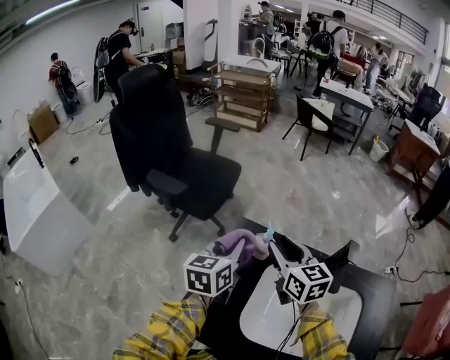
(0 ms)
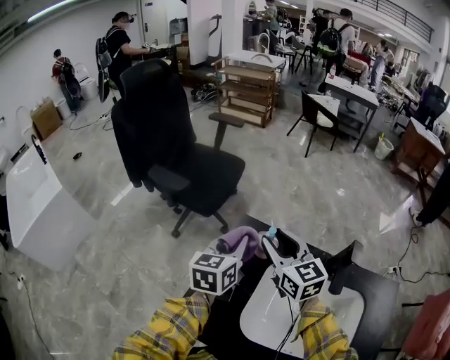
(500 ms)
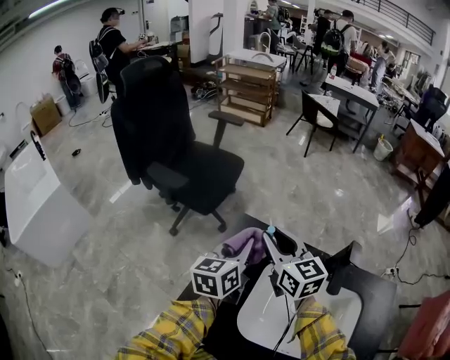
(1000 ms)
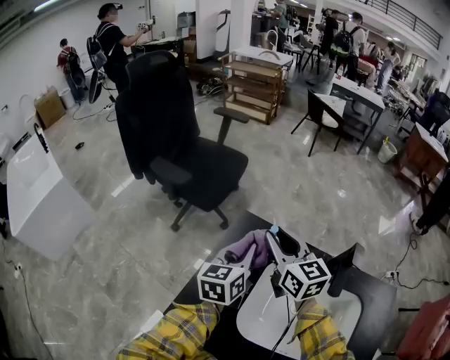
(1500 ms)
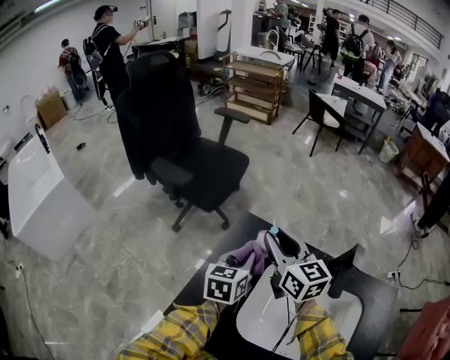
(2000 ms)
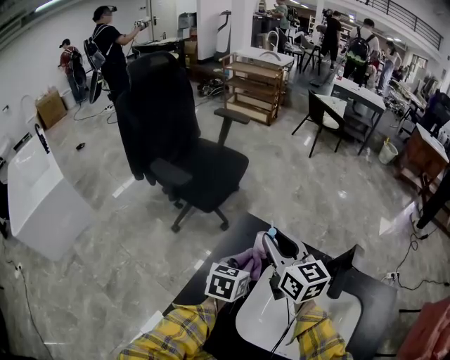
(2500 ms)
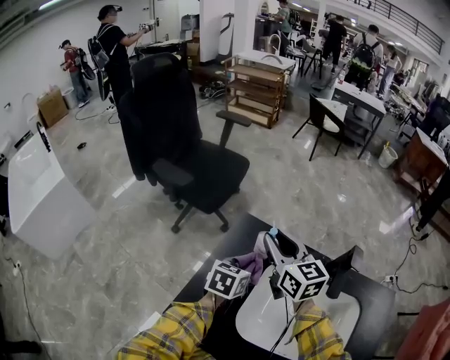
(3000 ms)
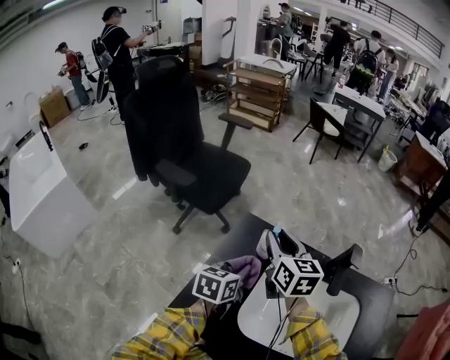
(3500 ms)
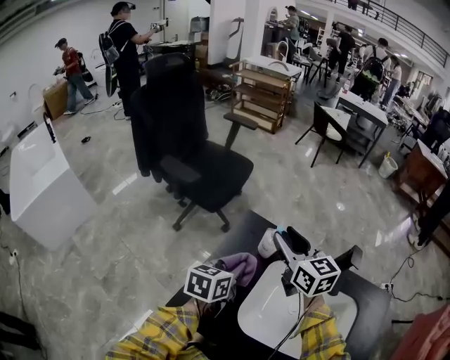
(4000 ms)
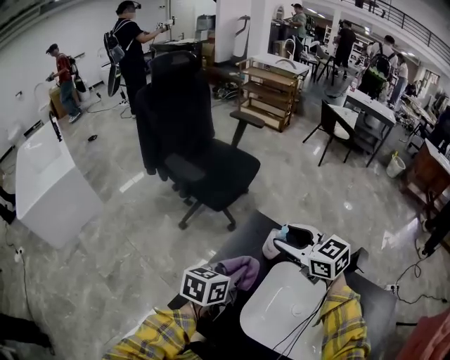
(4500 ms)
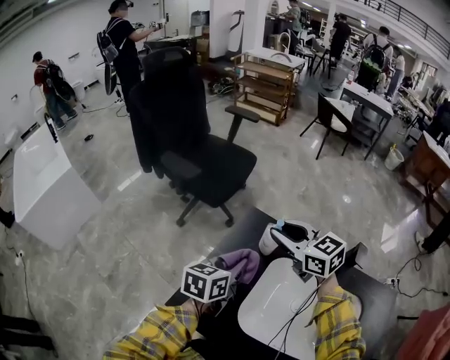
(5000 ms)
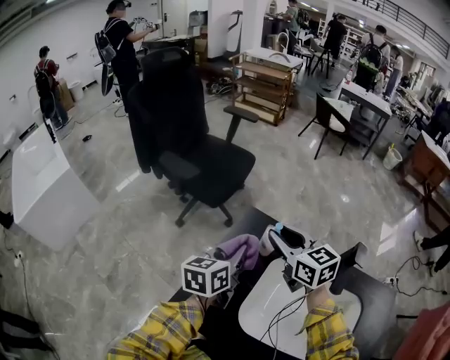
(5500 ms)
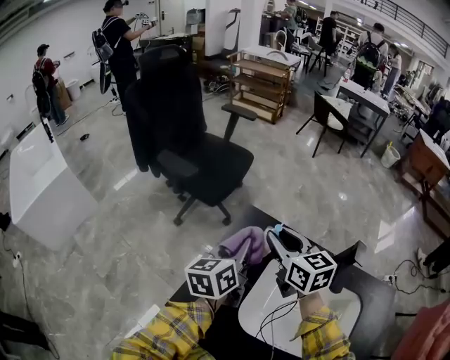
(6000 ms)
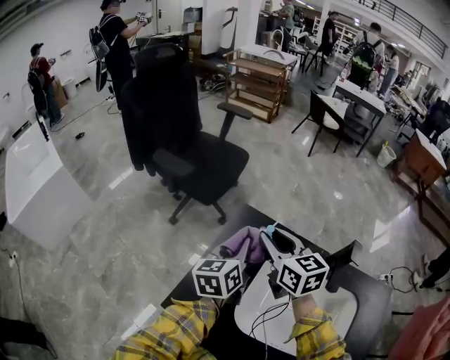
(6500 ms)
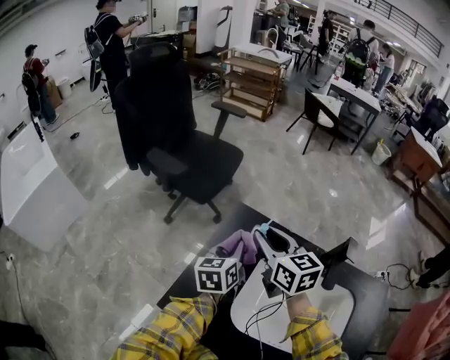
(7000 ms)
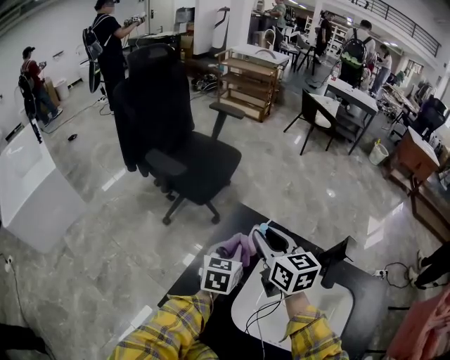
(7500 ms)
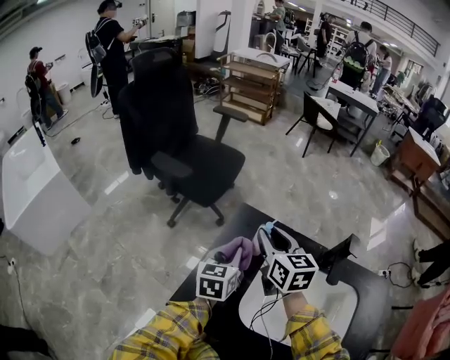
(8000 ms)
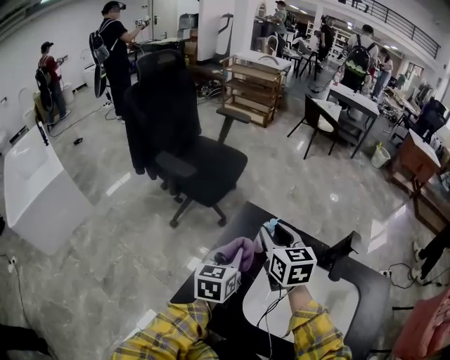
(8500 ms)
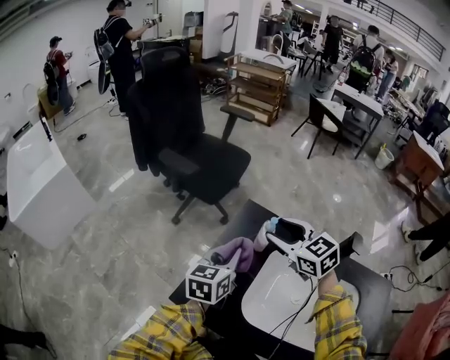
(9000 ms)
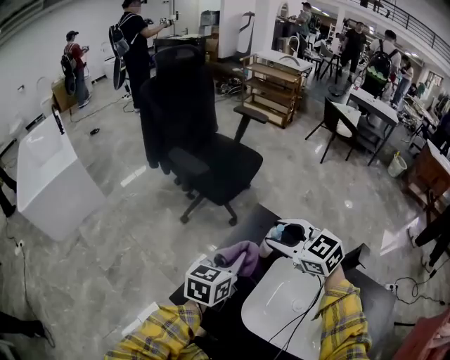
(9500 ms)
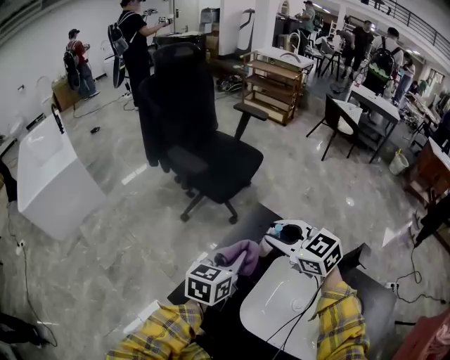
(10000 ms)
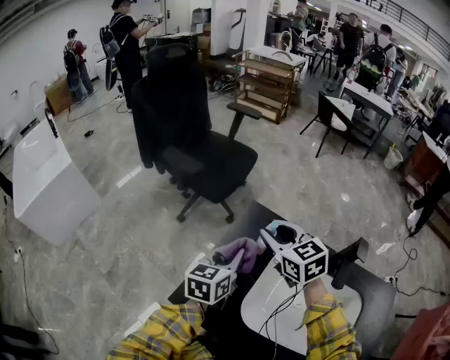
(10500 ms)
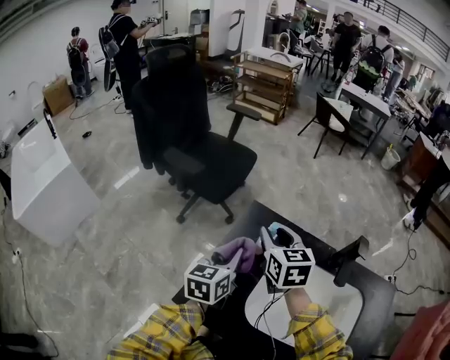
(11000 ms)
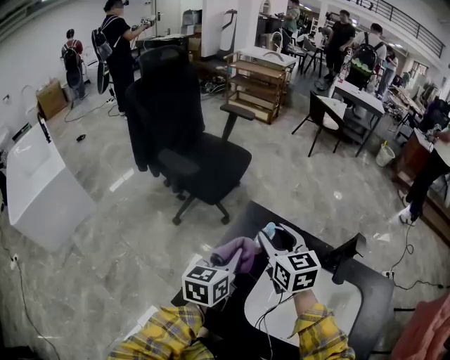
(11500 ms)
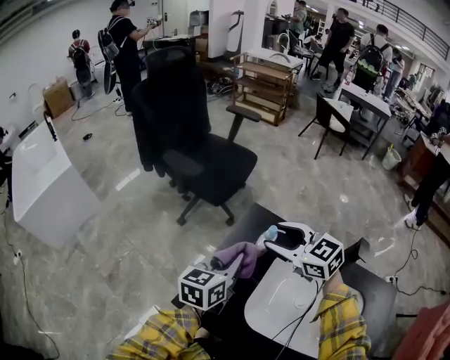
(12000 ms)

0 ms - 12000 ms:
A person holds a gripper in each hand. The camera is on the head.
0 ms - 2000 ms: The left gripper shifts about 5 cm downward.
2000 ms - 4000 ms: The left gripper moves backward, about 5 cm.
4000 ms - 6000 ms: The left gripper moves upward and forward, about 10 cm, and turns by some 20 degrees.
6000 ms - 8000 ms: The left gripper travels downward by approximately 5 cm, and turns by roughly 20 degrees.
8000 ms - 10000 ms: The right gripper turns by about 50 degrees.

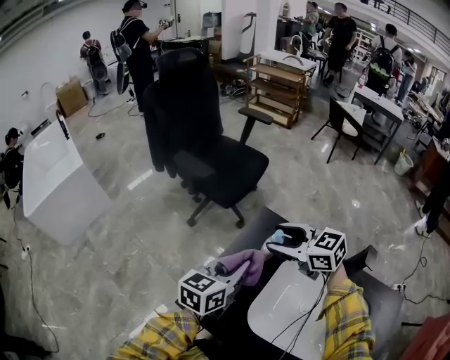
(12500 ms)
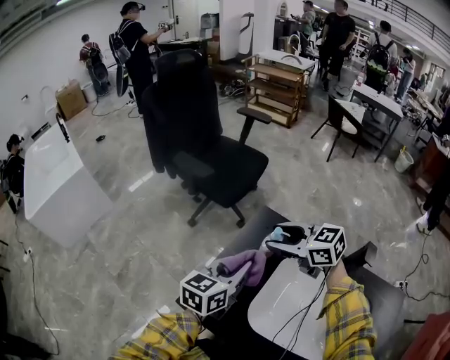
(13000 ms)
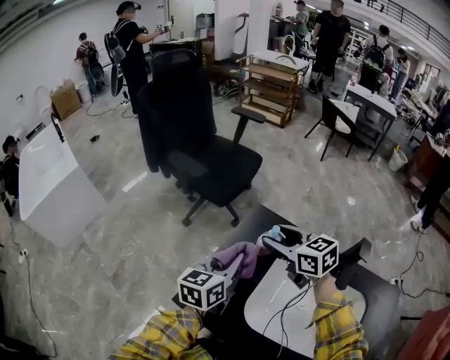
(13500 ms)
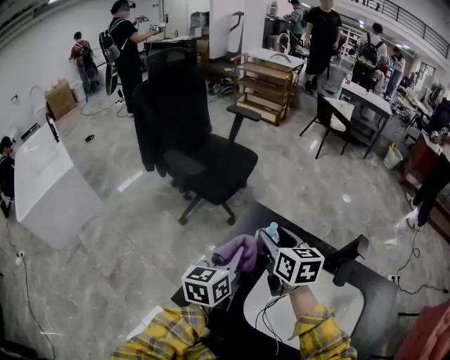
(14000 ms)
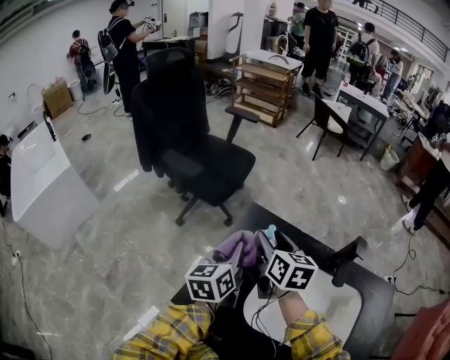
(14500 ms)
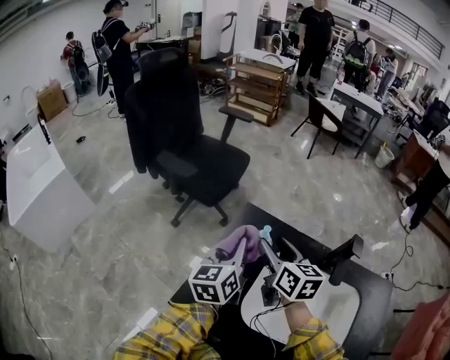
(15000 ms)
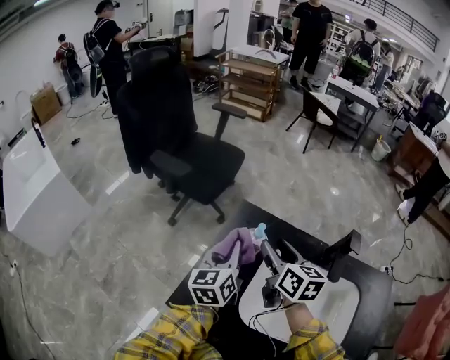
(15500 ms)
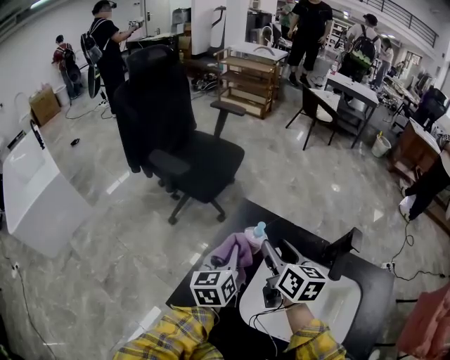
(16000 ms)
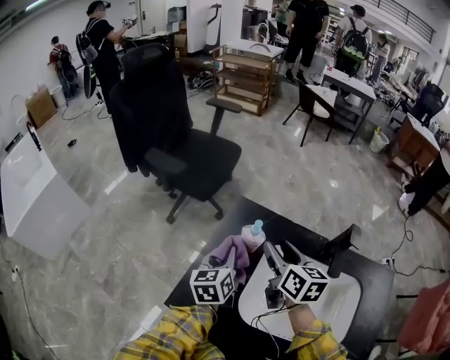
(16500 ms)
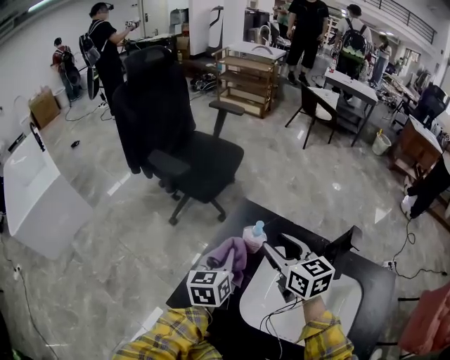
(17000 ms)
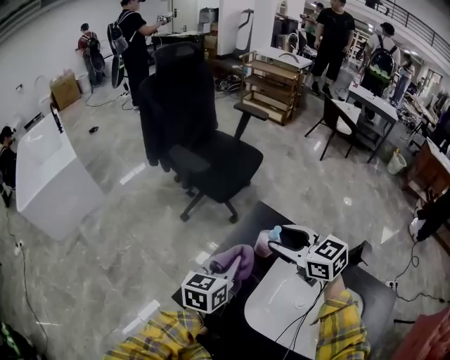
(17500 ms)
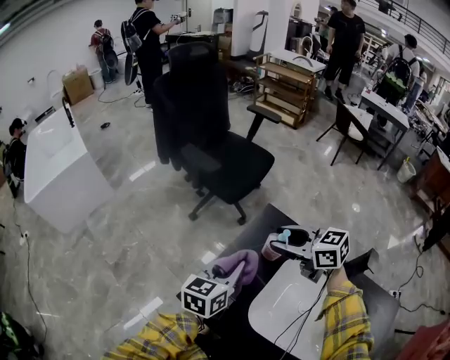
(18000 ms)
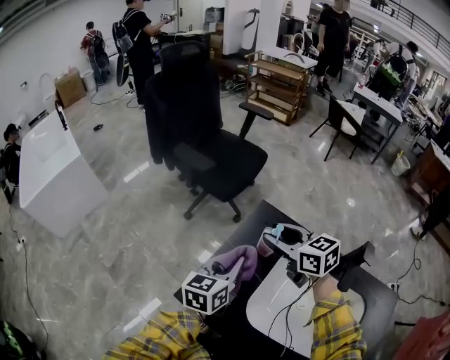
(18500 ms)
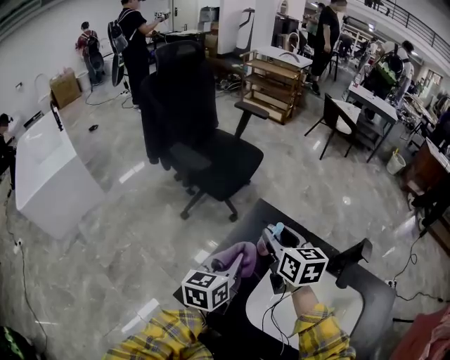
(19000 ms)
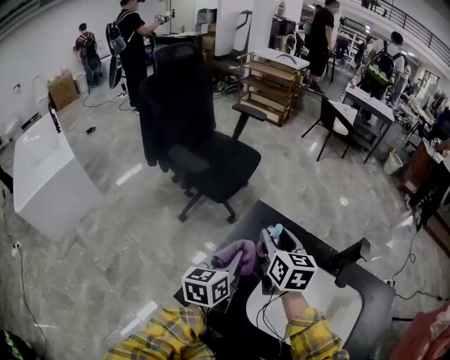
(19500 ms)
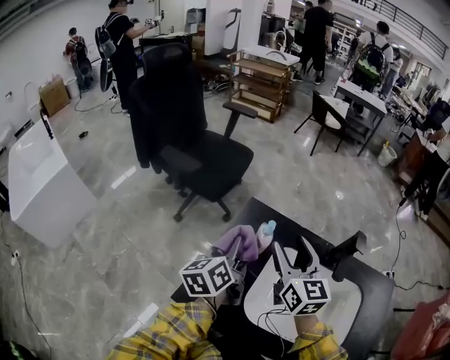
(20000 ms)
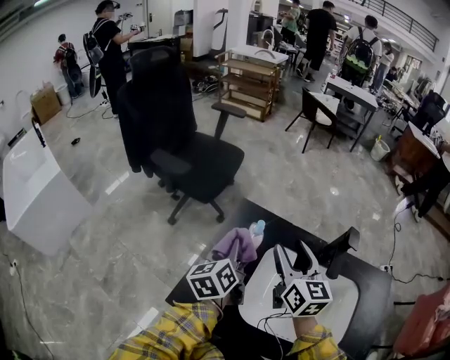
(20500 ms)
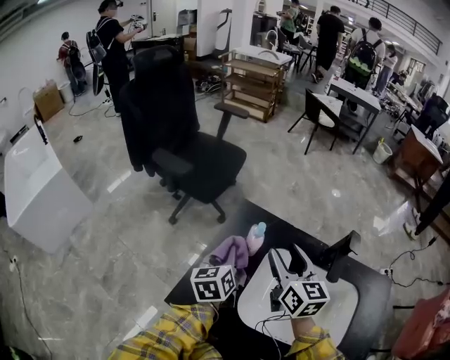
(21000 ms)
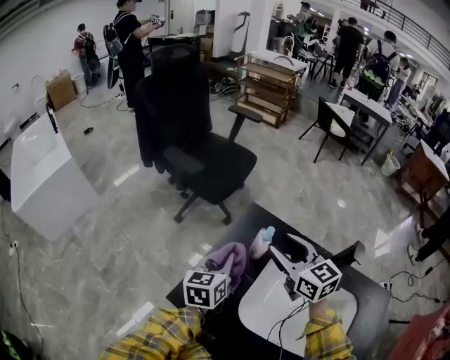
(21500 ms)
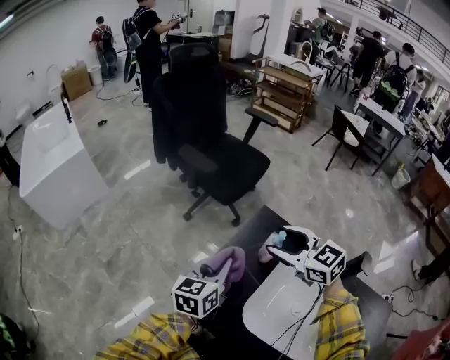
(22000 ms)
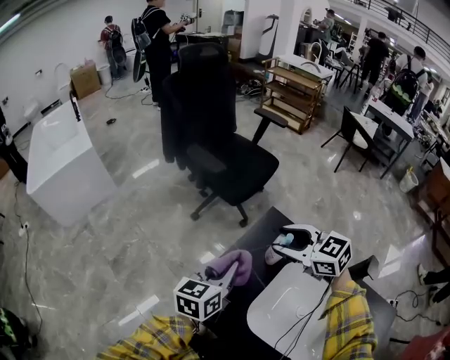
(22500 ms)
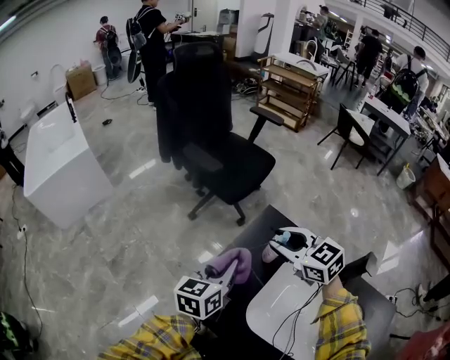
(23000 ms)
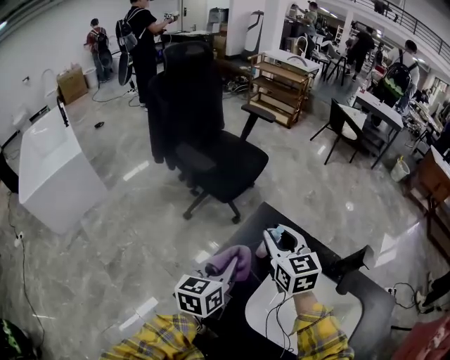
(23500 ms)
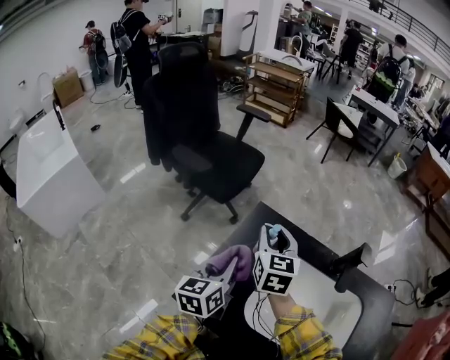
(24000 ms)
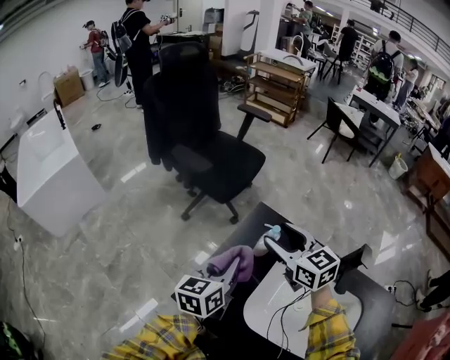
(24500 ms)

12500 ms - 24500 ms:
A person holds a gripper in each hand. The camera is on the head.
12500 ms - 14500 ms: The right gripper rotates approximately 60 degrees.
14500 ms - 16500 ms: The right gripper moves to the right, some 5 cm. Meanwhile the left gripper moves downward, some 5 cm.
16500 ms - 18500 ms: The left gripper ends up roughly 5 cm from where it was. Meanwhile the right gripper shifts approximately 10 cm to the left, and rotates some 40 degrees.
18500 ms - 20500 ms: The right gripper moves to the right and backward, about 10 cm, and changes its angle by approximately 50 degrees.
20500 ms - 22500 ms: The left gripper shifts by approximately 10 cm; the right gripper shifts by approximately 15 cm, and turns by some 70 degrees.
22500 ms - 24500 ms: The right gripper swivels roughly 30 degrees, and closes and opens again.

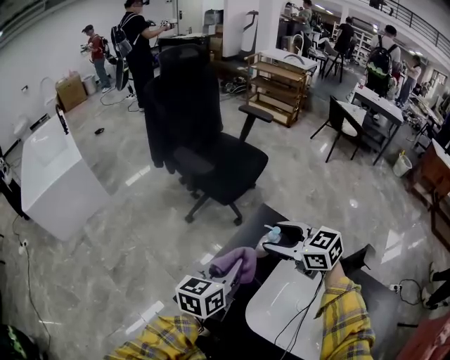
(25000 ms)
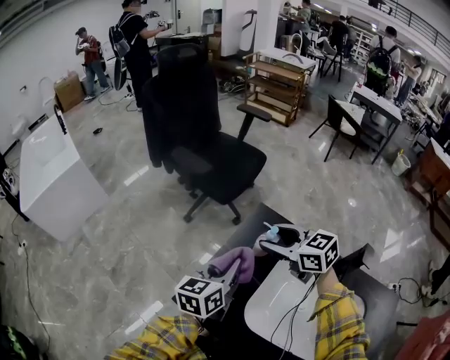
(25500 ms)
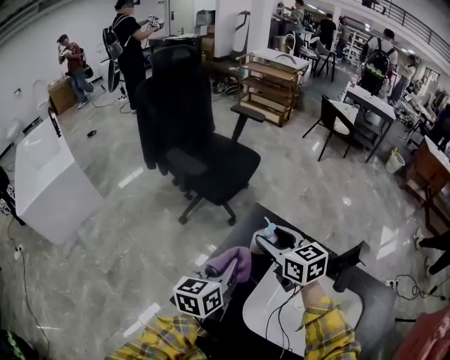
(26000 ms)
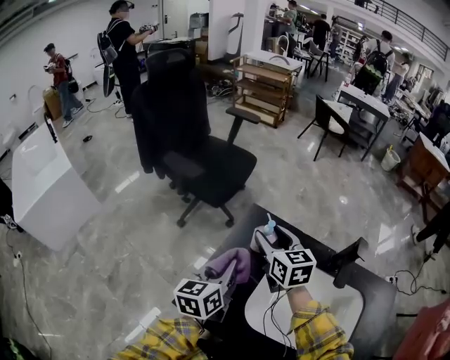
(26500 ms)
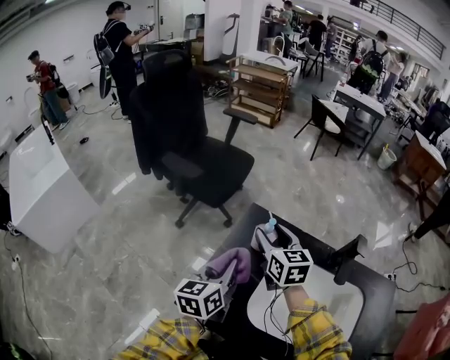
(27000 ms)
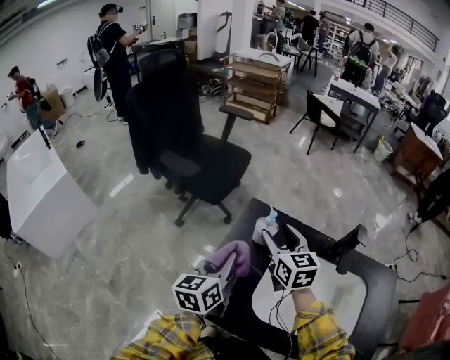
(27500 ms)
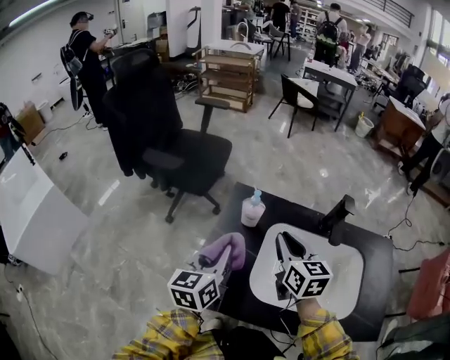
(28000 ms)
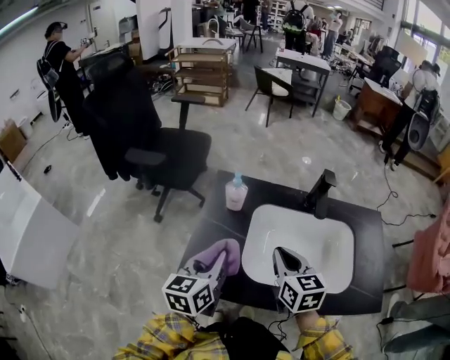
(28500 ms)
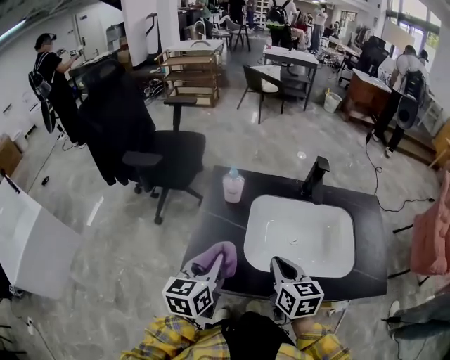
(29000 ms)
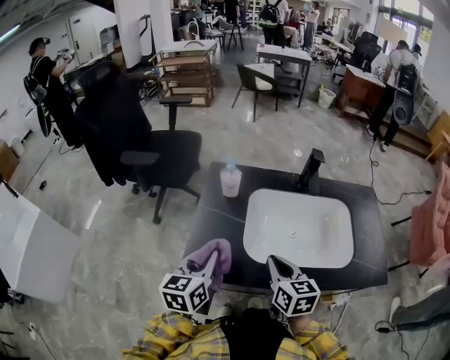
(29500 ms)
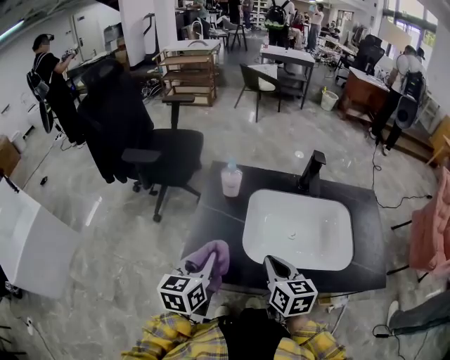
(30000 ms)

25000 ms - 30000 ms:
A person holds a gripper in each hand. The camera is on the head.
25000 ms - 27500 ms: The right gripper changes its angle by some 50 degrees.
27500 ms - 30000 ms: The left gripper moves backward, about 15 cm; the right gripper travels backward by roughly 30 cm, changes its angle by roughly 20 degrees, and closes its fingers.
